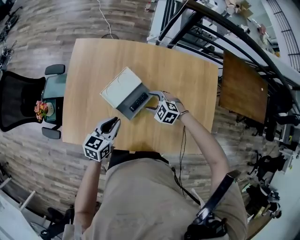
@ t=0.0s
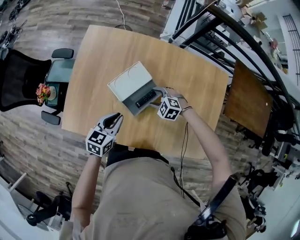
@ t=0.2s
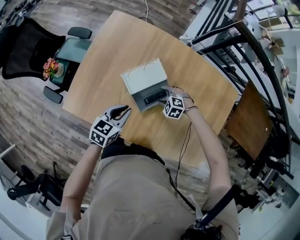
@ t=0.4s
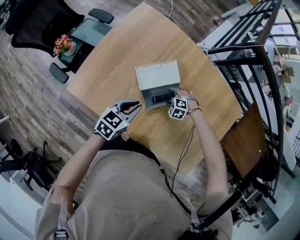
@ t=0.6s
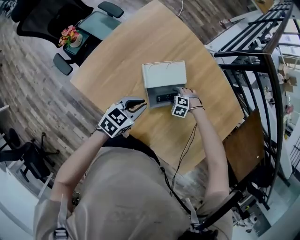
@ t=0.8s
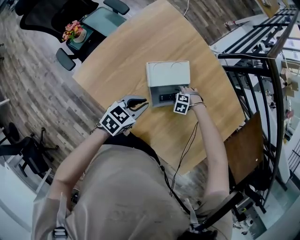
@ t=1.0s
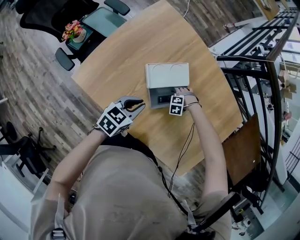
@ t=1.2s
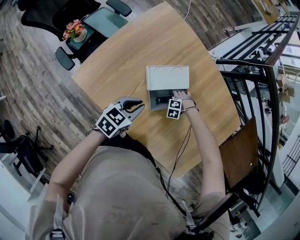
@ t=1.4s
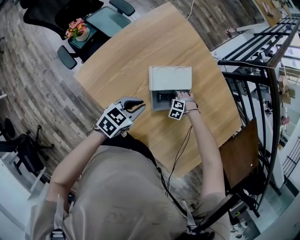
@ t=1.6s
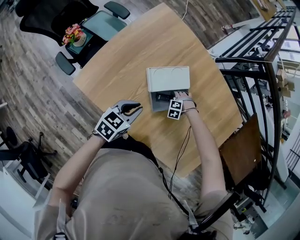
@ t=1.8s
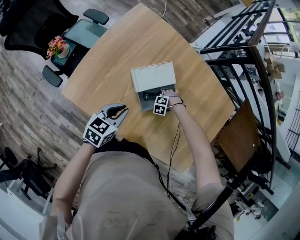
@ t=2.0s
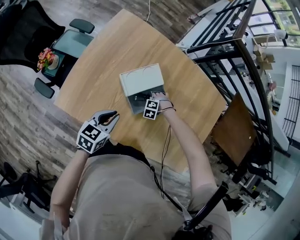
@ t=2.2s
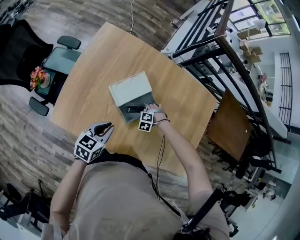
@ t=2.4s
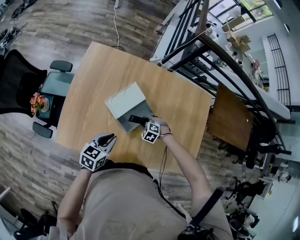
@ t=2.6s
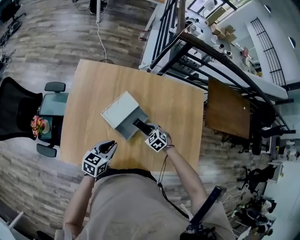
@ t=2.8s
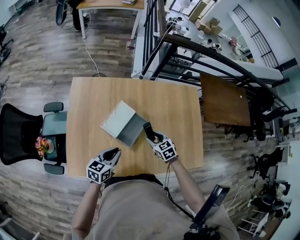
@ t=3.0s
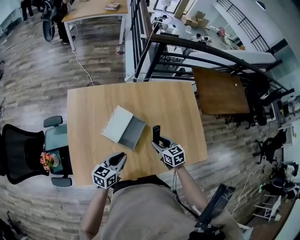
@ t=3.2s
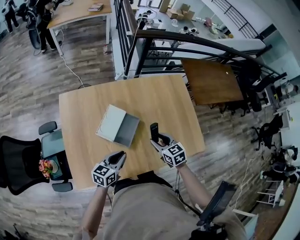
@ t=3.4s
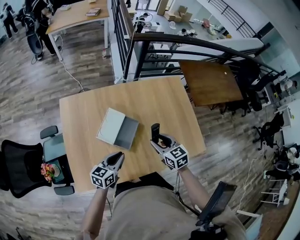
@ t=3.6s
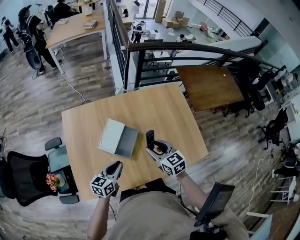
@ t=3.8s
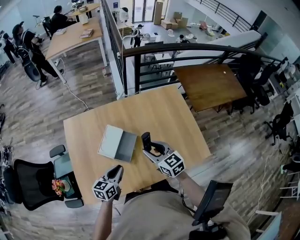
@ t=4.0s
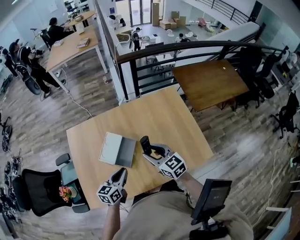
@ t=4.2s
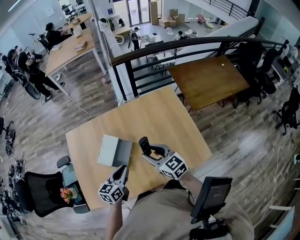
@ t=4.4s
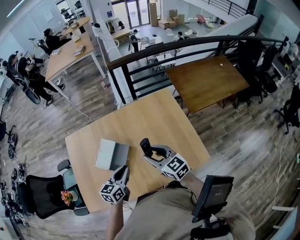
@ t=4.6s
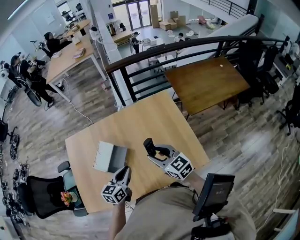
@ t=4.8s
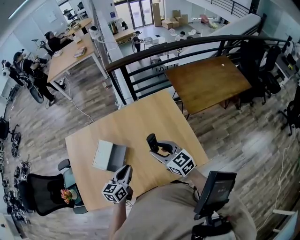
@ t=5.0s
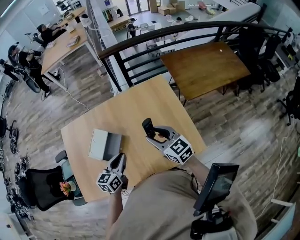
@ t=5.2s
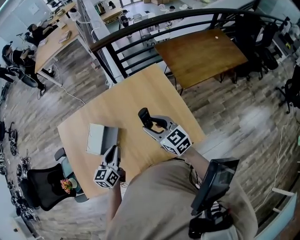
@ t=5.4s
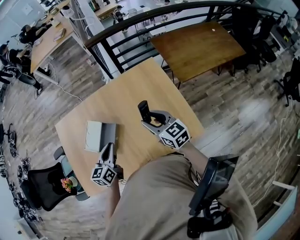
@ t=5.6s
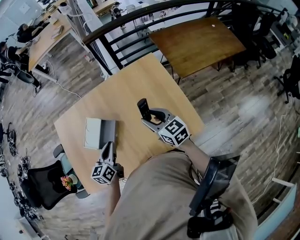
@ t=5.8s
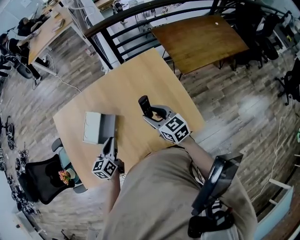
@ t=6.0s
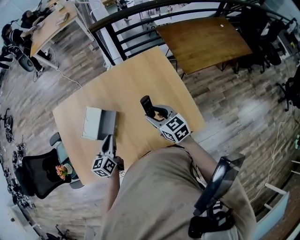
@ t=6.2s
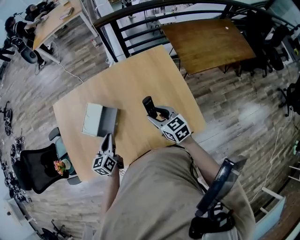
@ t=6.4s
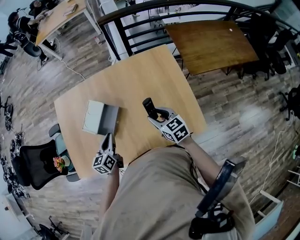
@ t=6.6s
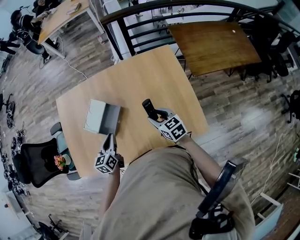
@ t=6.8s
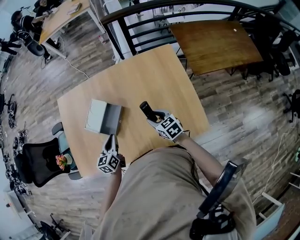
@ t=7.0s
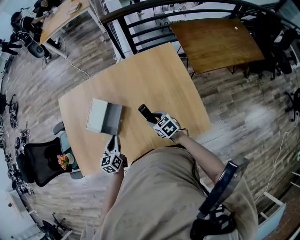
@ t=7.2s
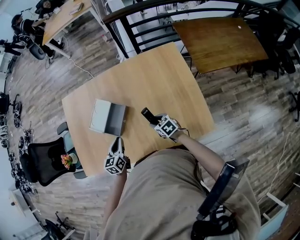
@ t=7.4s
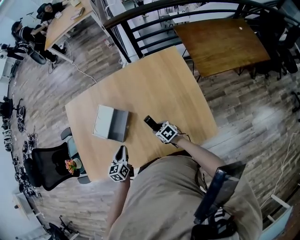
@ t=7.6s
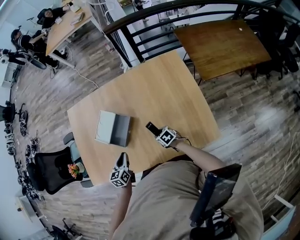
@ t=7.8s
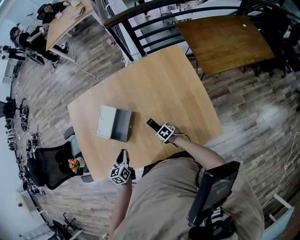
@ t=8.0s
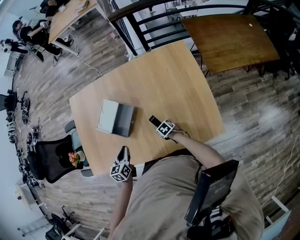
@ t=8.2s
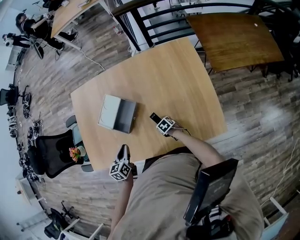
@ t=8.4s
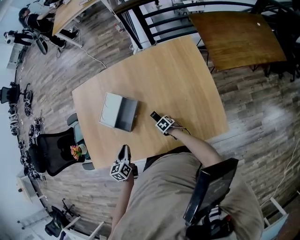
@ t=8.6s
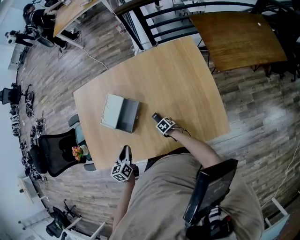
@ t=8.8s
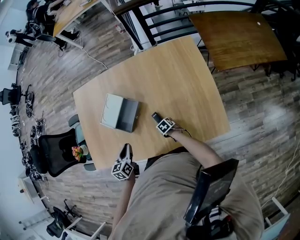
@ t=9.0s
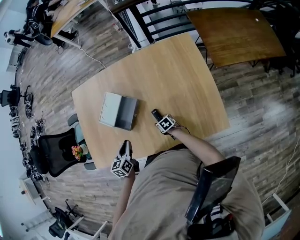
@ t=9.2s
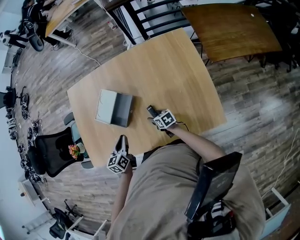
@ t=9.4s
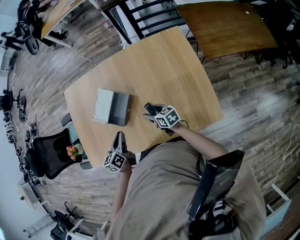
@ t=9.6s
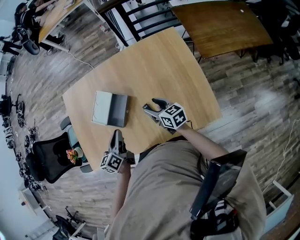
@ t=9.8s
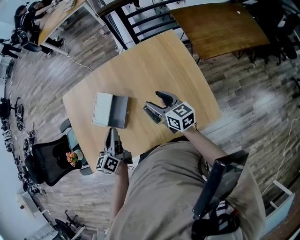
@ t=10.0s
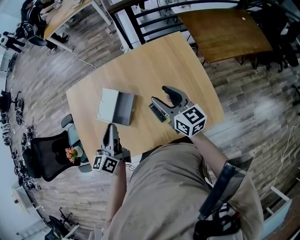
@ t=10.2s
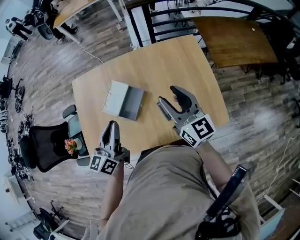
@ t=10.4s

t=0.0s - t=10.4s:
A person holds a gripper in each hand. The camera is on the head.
t=0.0s - t=1.4s: The right gripper shifts roughly 20 cm downward, and twists about 50 degrees counterclockwise, seen from behind. The left gripper shifts by approximately 5 cm.
t=1.4s - t=3.0s: The right gripper goes roughly 25 cm upward, and rolls clockwise, seen from behind, by some 90 degrees, while the left gripper is displaced upward by roughly 5 cm, and changes its angle by some 20 degrees.
t=3.0s - t=4.4s: The right gripper goes about 25 cm upward and to the right, and points its fingers about 30 degrees further upward, while the left gripper is displaced to the right and upward by about 20 cm.
t=4.4s - t=6.0s: The right gripper heads to the right and downward, covering about 15 cm. Meanwhile the left gripper goes approximately 10 cm to the right and downward.
t=6.0s - t=7.4s: The right gripper goes some 20 cm downward, and rotates about 30 degrees. Meanwhile the left gripper shifts about 10 cm downward and to the left.
t=7.4s - t=9.0s: The right gripper travels downward by about 20 cm. The left gripper shifts by about 5 cm.
t=9.0s - t=10.4s: The right gripper heads upward, covering some 50 cm, and tips its fingers upward by roughly 60 degrees; the left gripper moves upward, some 25 cm, and points its fingers about 30 degrees further upward.

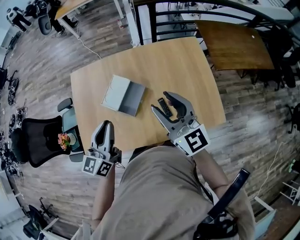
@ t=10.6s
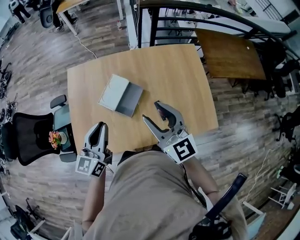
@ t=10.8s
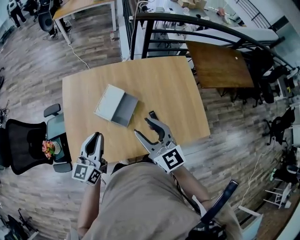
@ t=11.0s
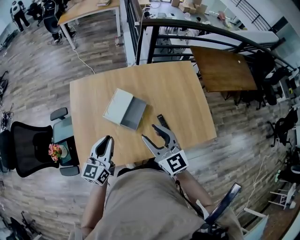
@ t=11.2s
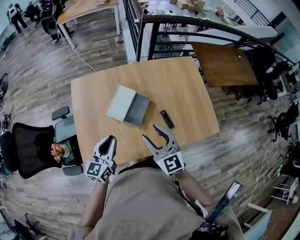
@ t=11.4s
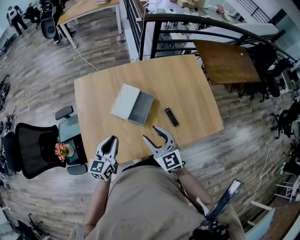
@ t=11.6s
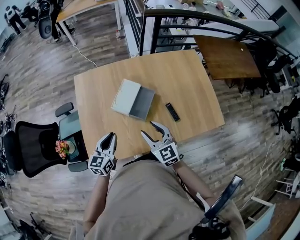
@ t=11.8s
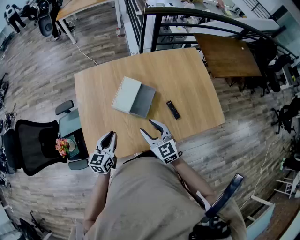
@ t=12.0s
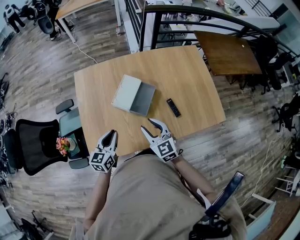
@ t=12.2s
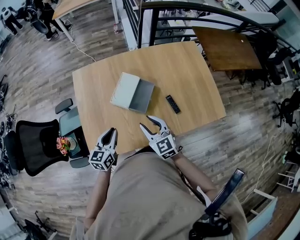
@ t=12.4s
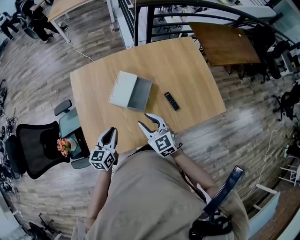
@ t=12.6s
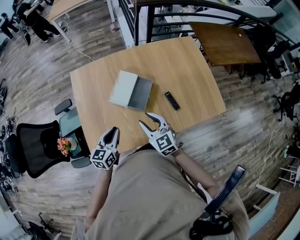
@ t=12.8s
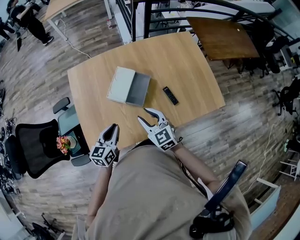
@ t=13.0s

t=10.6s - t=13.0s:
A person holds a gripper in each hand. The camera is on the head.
t=10.6s - t=11.8s: The two grippers go roughly 25 cm to the left and downward. The right gripper rotates some 20 degrees.
t=11.8s - t=13.0s: The grippers stay close to where they were, moving slightly.

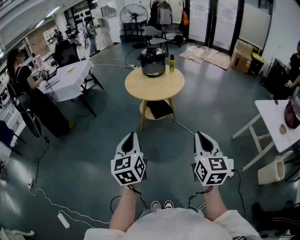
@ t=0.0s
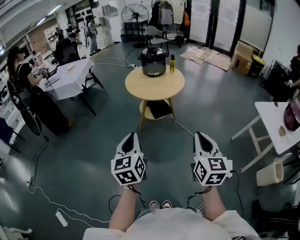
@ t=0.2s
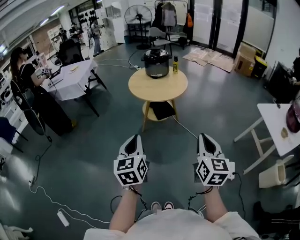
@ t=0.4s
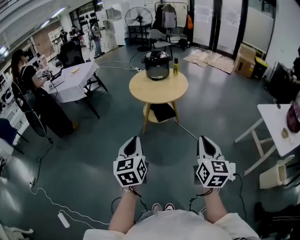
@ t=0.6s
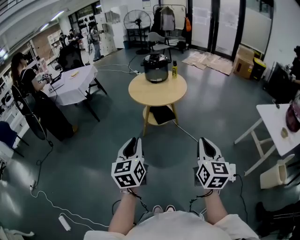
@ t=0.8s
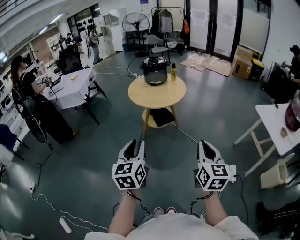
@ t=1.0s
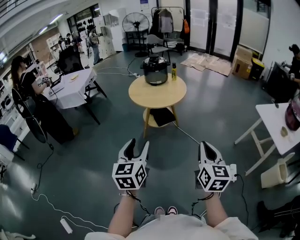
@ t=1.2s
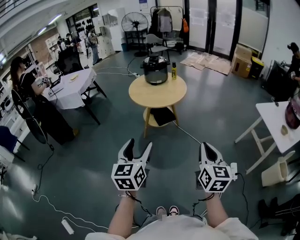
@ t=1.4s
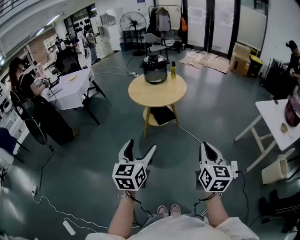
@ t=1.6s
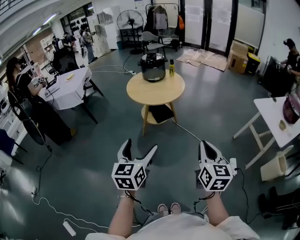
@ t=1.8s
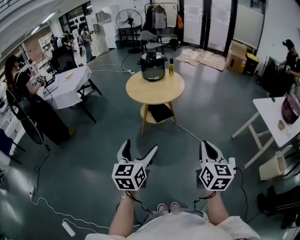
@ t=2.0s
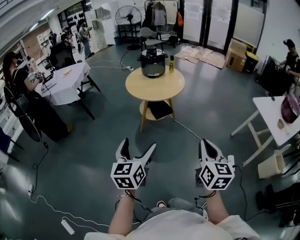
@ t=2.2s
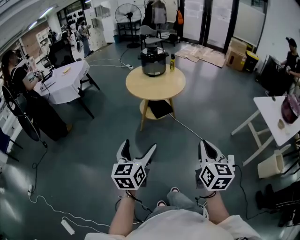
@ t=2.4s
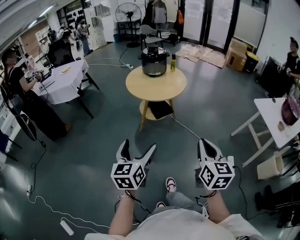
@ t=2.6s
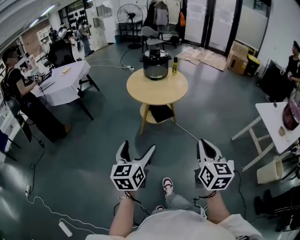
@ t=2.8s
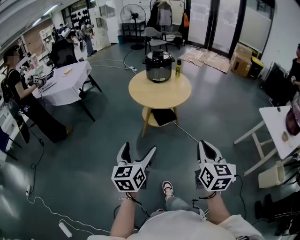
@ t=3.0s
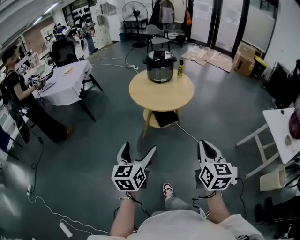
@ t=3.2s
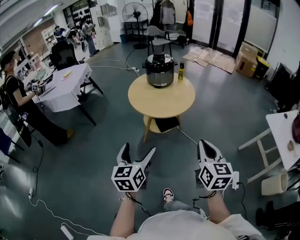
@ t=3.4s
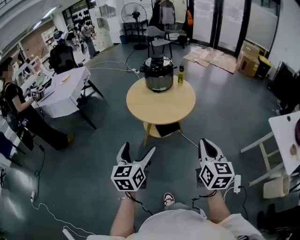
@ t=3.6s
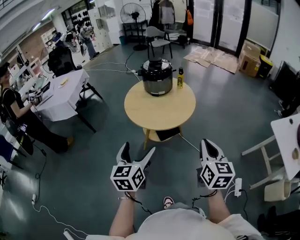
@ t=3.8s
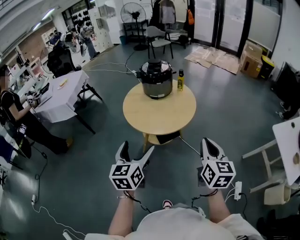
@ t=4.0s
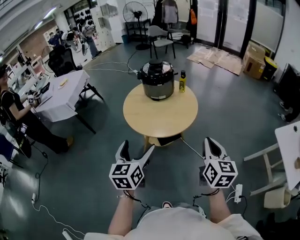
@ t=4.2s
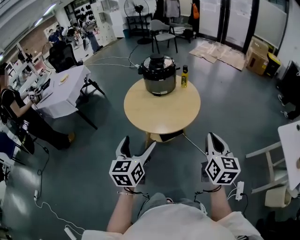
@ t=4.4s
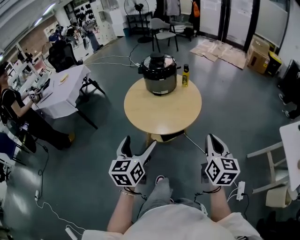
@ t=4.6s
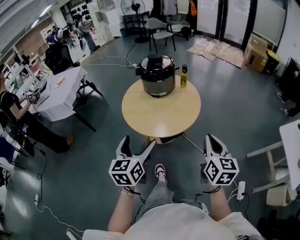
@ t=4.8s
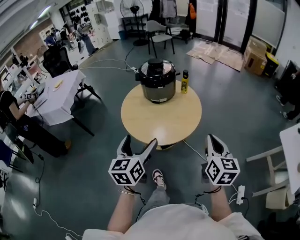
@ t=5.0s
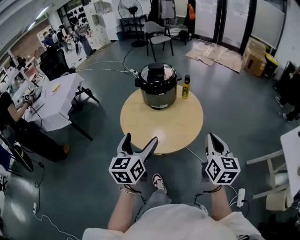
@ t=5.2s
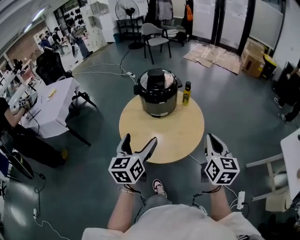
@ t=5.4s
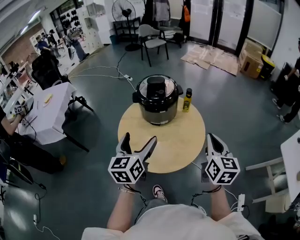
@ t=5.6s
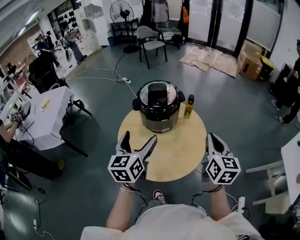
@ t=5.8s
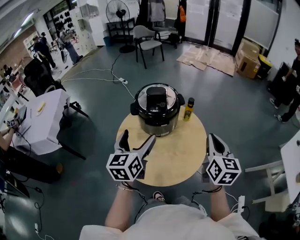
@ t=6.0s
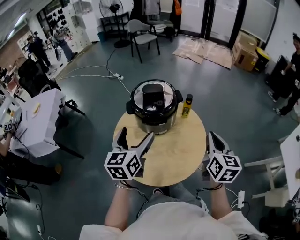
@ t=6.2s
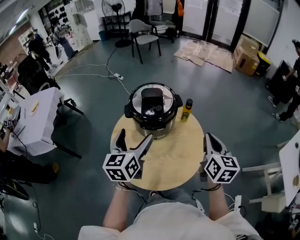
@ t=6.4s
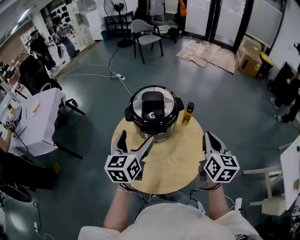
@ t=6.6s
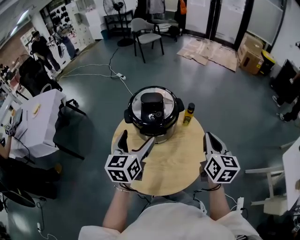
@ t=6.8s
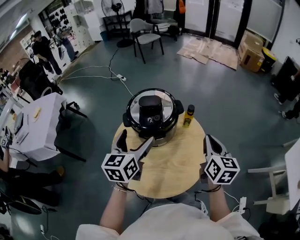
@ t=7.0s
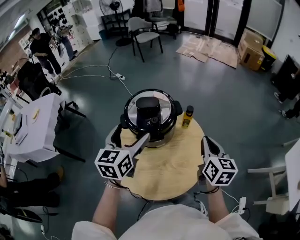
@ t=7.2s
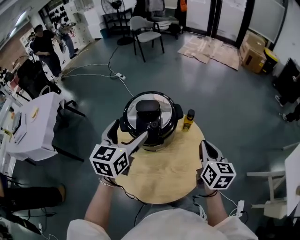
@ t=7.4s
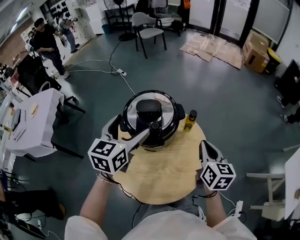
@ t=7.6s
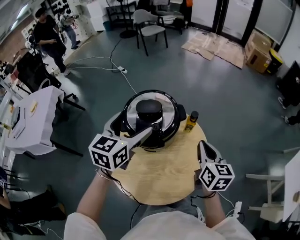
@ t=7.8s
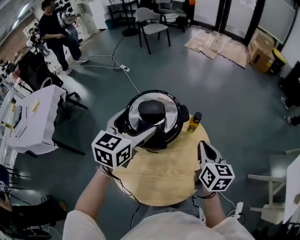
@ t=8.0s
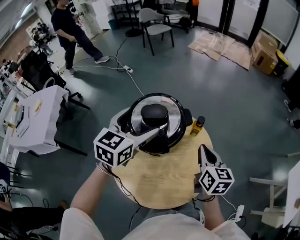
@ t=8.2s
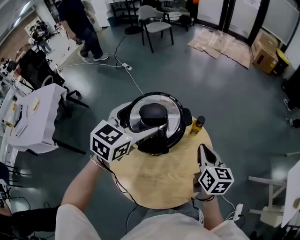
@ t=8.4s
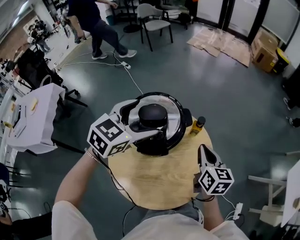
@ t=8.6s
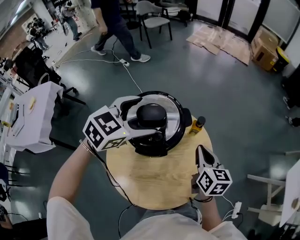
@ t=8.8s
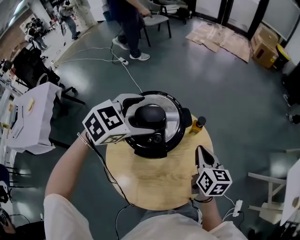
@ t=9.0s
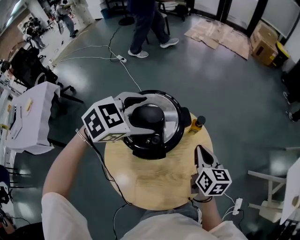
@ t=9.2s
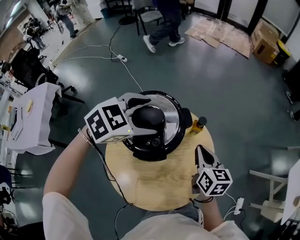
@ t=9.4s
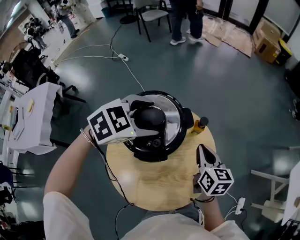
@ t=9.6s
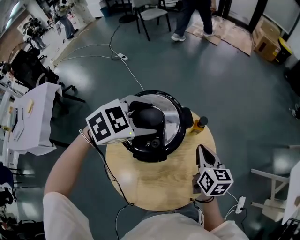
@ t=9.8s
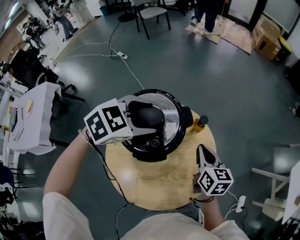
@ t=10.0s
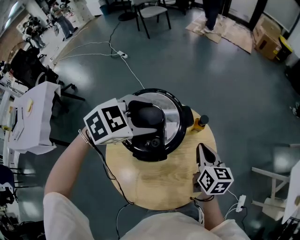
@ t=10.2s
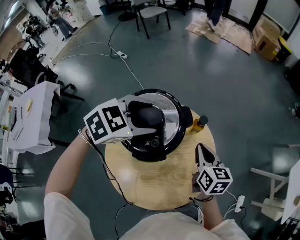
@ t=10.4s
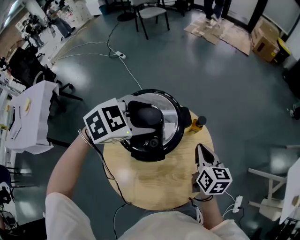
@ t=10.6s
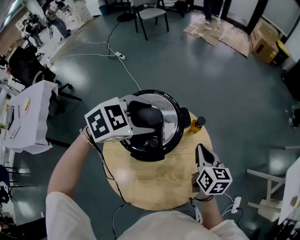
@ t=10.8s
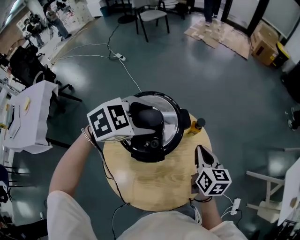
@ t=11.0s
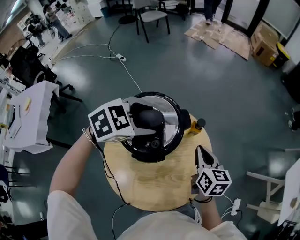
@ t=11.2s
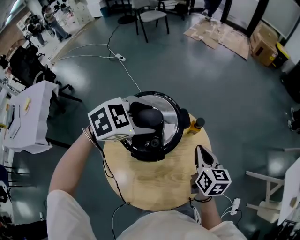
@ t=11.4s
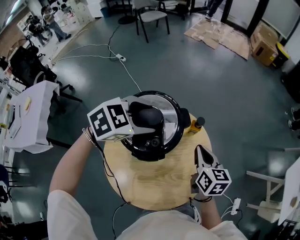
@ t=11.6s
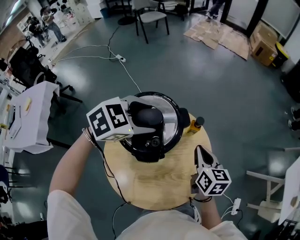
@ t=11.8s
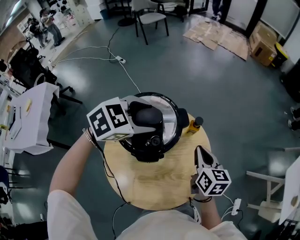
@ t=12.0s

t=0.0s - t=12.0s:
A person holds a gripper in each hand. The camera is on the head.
t=0.0s - t=1.6s: The left gripper opens.
t=1.6s - t=3.0s: The two grippers go approximately 10 cm forward and to the left.
t=3.0s - t=4.4s: Both grippers travel together forward, some 30 cm.
t=4.4s - t=6.0s: The grippers both shift forward by some 35 cm.
t=6.0s - t=7.6s: The right gripper moves forward and downward, approximately 15 cm; the left gripper is displaced forward by roughly 15 cm.
t=7.6s - t=9.0s: The right gripper moves downward, about 5 cm. Meanwhile the left gripper heads forward, covering some 10 cm, and swivels approximately 50 degrees.
t=9.0s - t=12.0s: The grippers make only small movements.
